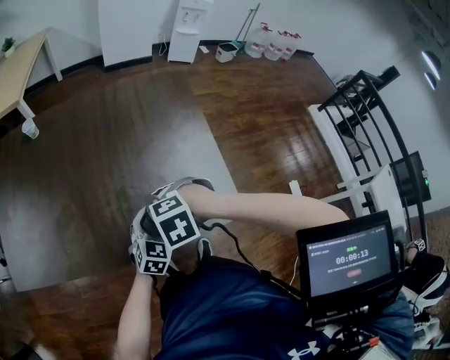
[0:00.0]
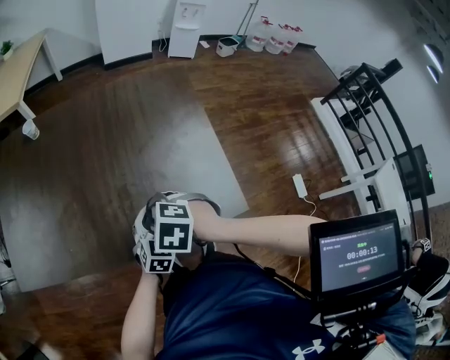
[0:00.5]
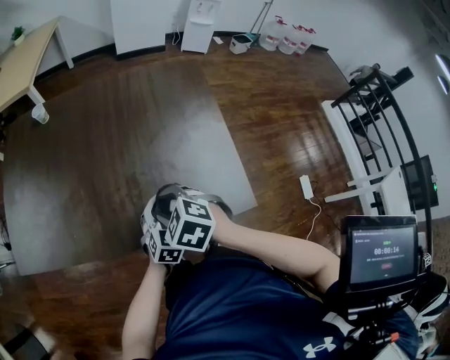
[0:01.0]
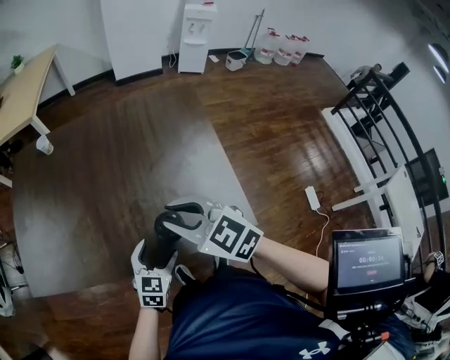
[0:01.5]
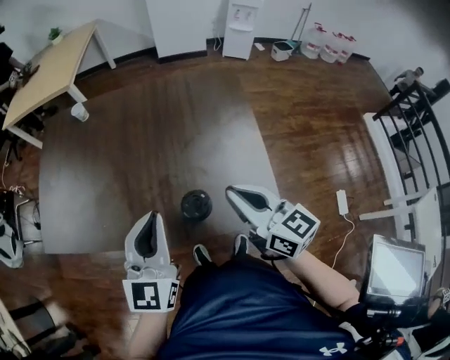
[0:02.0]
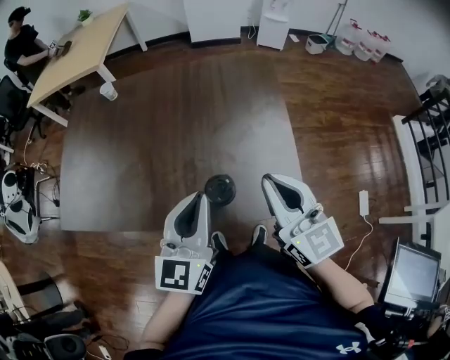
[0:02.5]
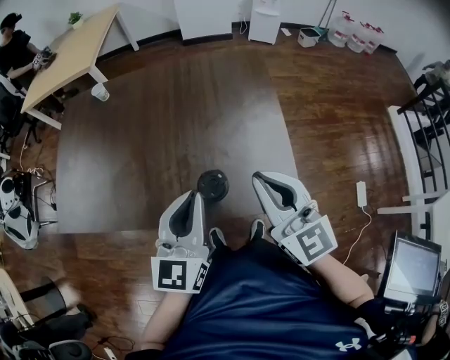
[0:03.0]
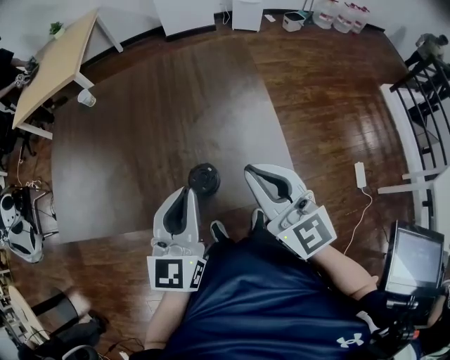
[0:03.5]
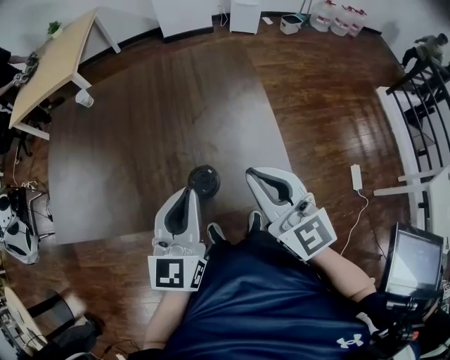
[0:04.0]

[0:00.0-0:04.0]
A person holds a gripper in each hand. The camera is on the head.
0:00.0 to 0:02.0: The left gripper moves upward, some 25 cm, points its fingers approximately 30 degrees further upward, and closes, while the right gripper shifts by about 20 cm, tips its fingers upward by some 70 degrees, and closes.
0:02.0 to 0:04.0: The right gripper swivels about 20 degrees.

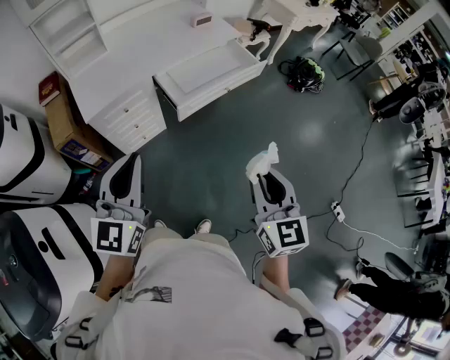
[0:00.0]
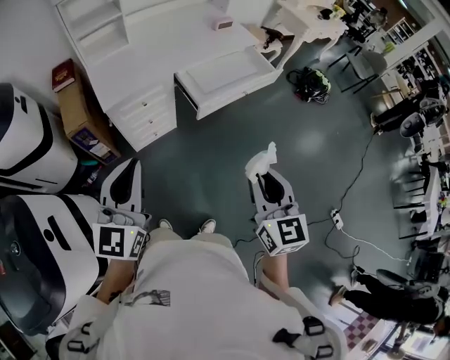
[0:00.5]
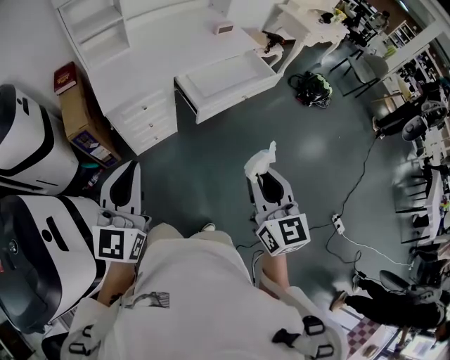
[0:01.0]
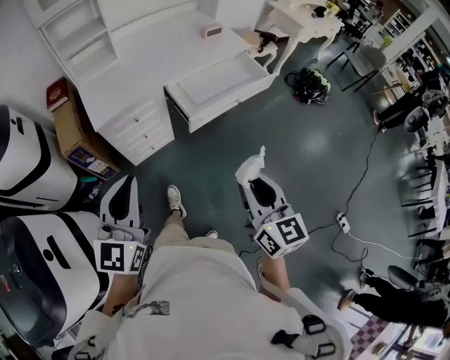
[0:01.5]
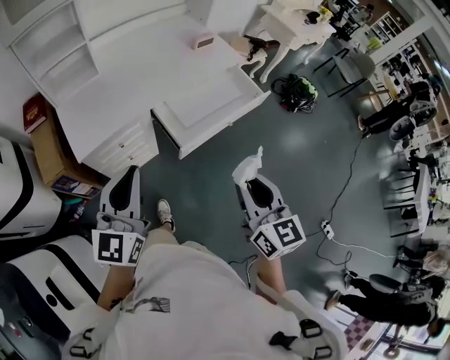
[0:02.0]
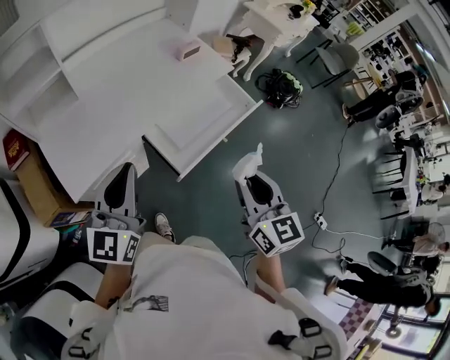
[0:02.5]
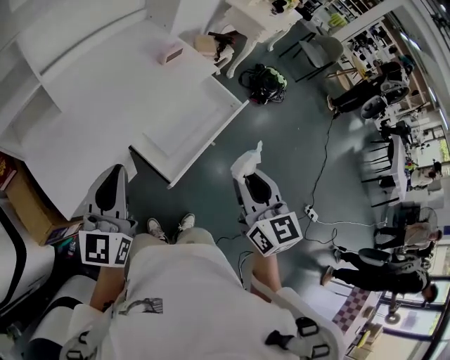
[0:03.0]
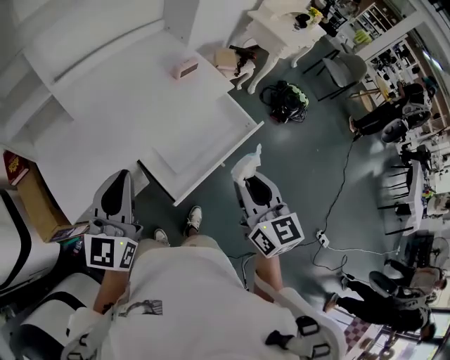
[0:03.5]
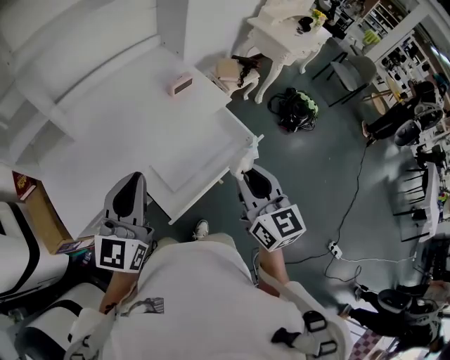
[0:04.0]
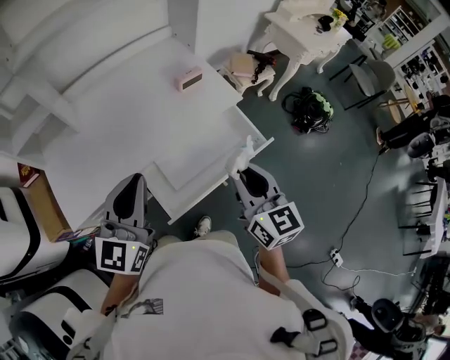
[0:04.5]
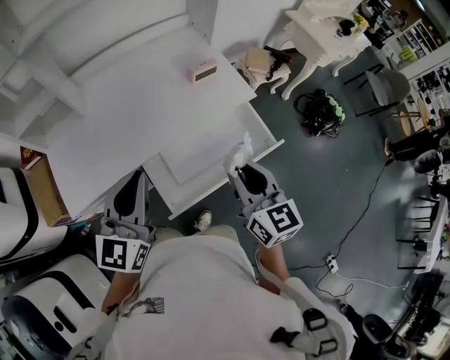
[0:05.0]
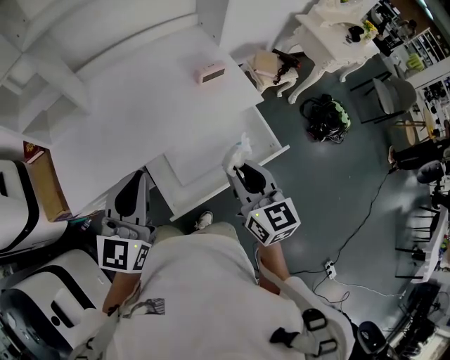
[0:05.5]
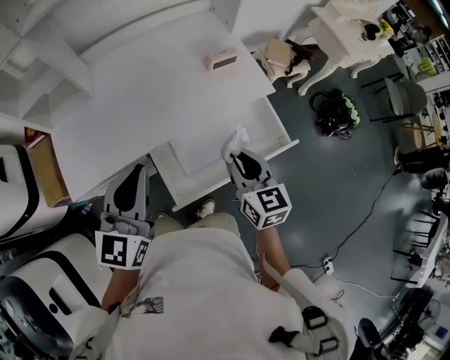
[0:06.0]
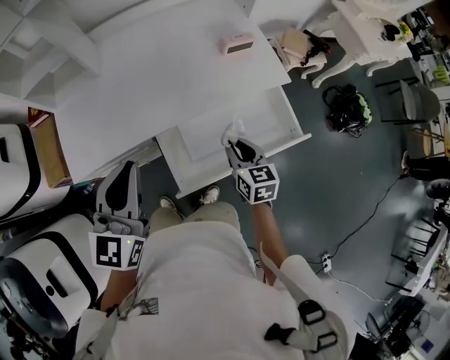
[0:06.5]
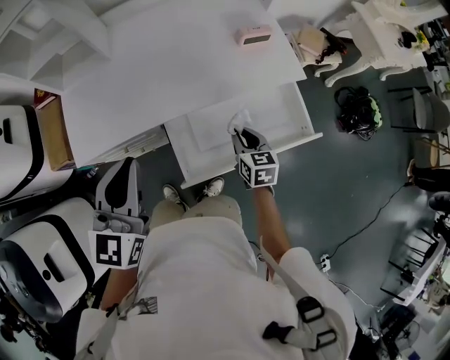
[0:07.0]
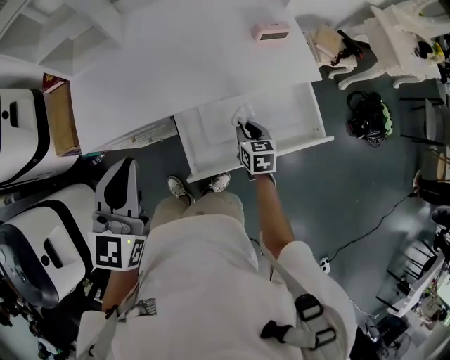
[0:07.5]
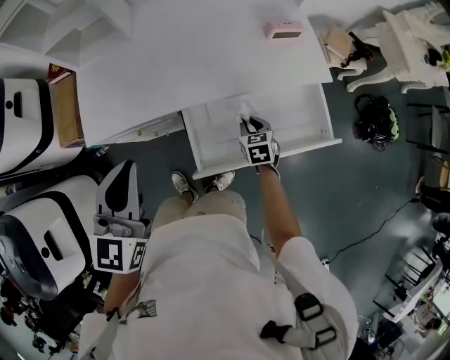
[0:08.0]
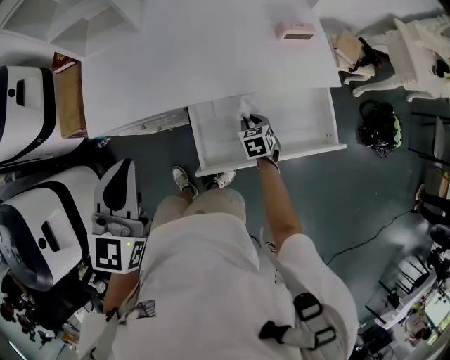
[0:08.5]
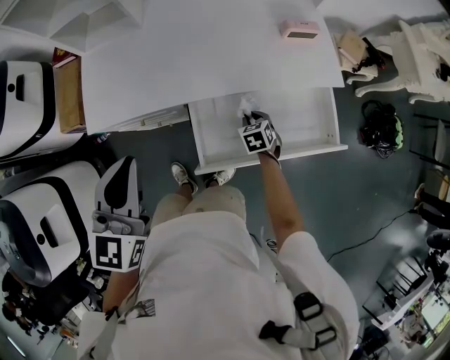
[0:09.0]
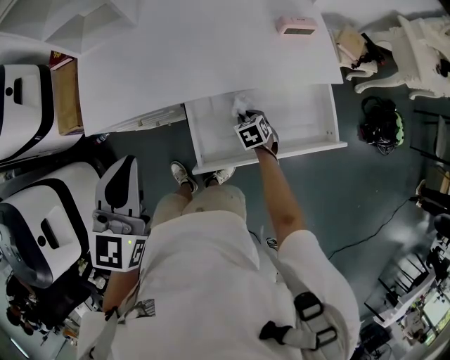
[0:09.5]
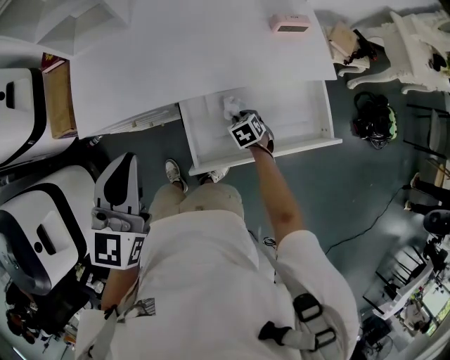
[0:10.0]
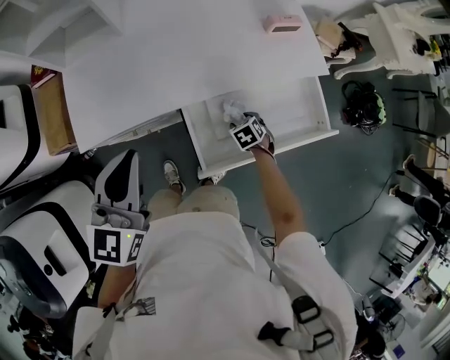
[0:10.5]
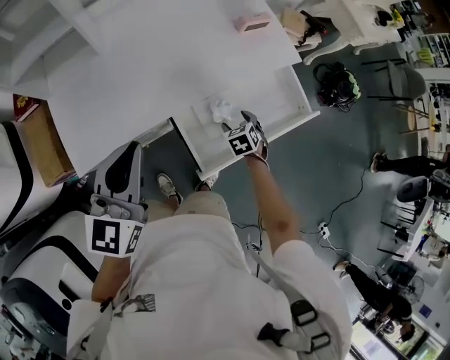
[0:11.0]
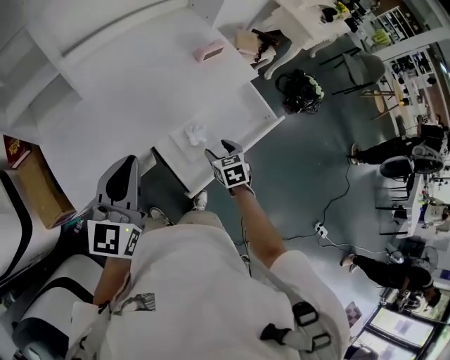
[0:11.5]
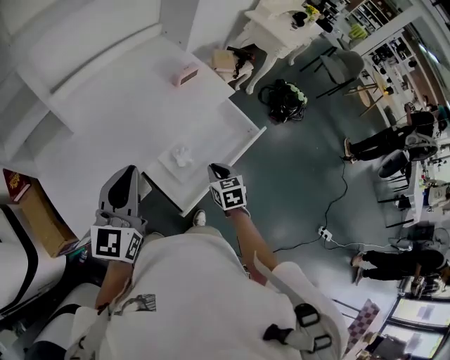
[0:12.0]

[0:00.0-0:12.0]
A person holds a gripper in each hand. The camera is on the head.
0:00.0 to 0:02.0: The left gripper travels forward by about 20 cm. Meanwhile the right gripper is displaced forward and to the left by some 20 cm.
0:02.0 to 0:04.0: Both grippers travel together forward, roughly 30 cm.
0:04.0 to 0:06.0: The left gripper moves downward, about 5 cm. The right gripper moves downward and forward, some 20 cm, and turns by about 20 degrees.
0:06.0 to 0:08.0: The left gripper shifts about 10 cm to the left, while the right gripper is displaced downward by roughly 25 cm, and turns by about 30 degrees.
0:08.0 to 0:10.0: The right gripper is displaced downward by approximately 10 cm, and rotates some 20 degrees.
0:10.0 to 0:12.0: The left gripper moves upward, about 5 cm, and rotates approximately 40 degrees. The right gripper heads upward, covering roughly 25 cm, rotates approximately 50 degrees, and opens and closes again.

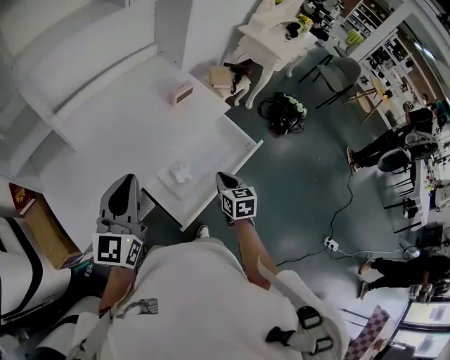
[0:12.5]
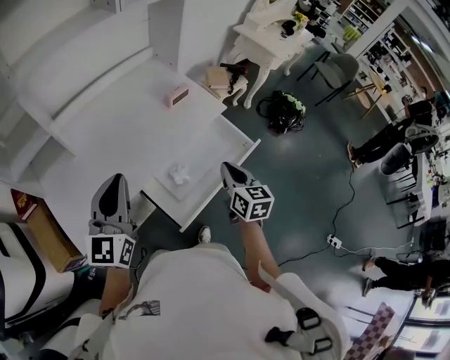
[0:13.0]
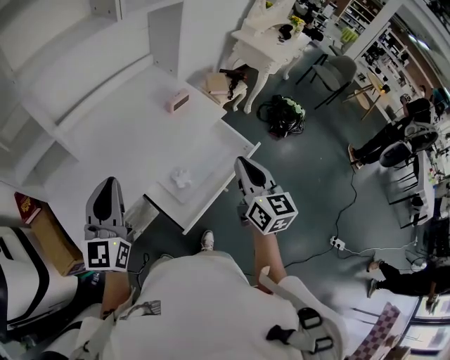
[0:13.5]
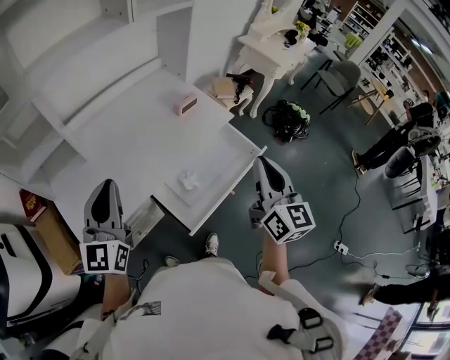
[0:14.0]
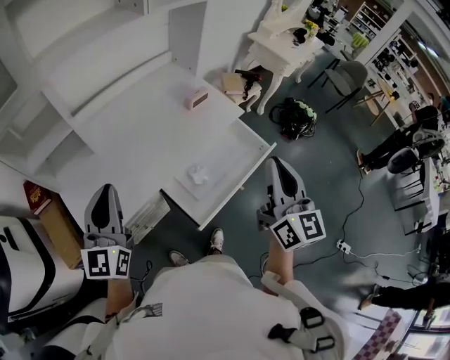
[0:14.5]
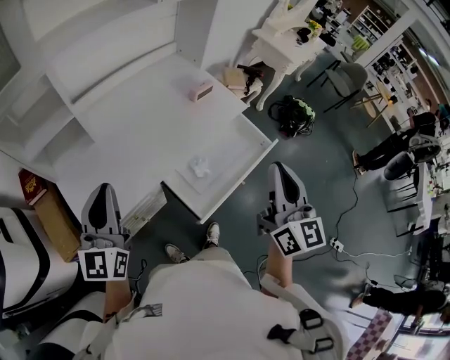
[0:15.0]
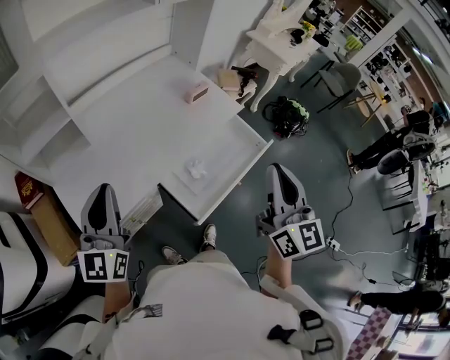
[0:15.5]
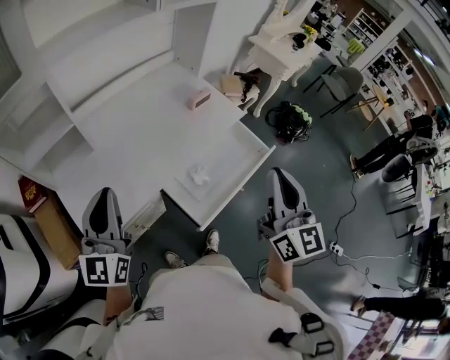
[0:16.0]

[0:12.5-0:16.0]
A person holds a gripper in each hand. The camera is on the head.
0:12.5 to 0:14.5: The right gripper moves upward, about 30 cm, and points its fingers some 40 degrees further upward, while the left gripper shifts approximately 10 cm to the left.
0:14.5 to 0:16.0: There are only small adjustments of the grippers.

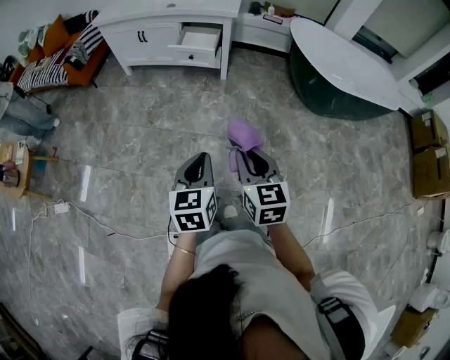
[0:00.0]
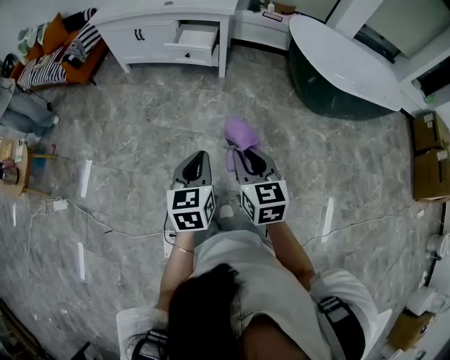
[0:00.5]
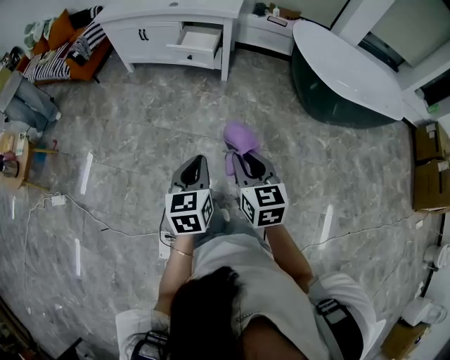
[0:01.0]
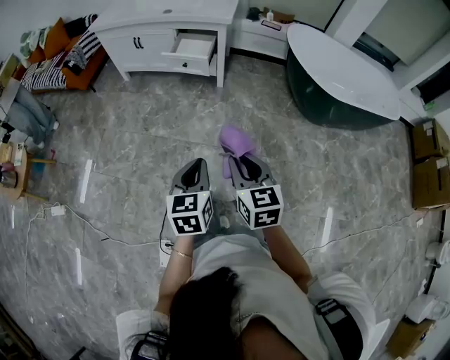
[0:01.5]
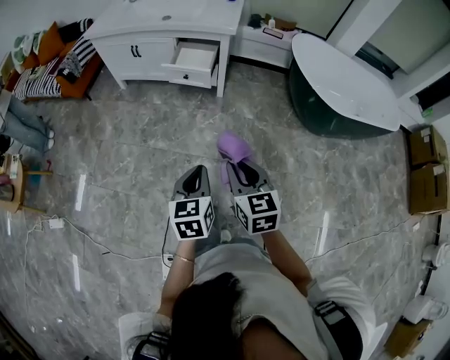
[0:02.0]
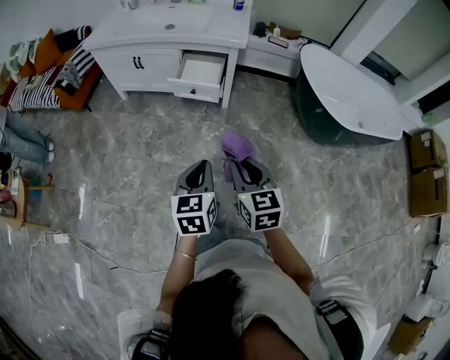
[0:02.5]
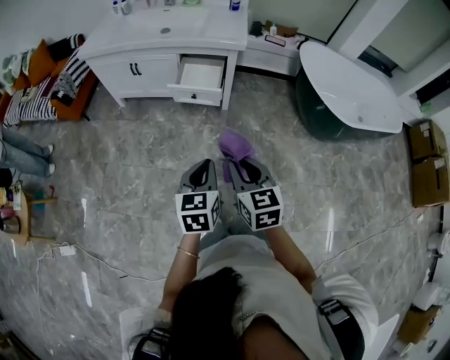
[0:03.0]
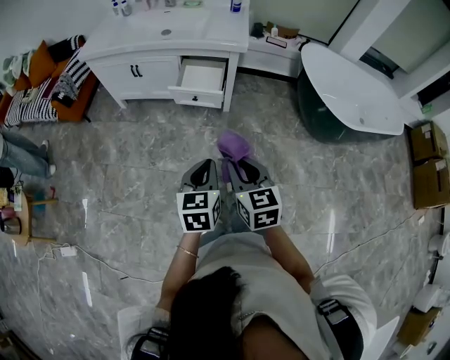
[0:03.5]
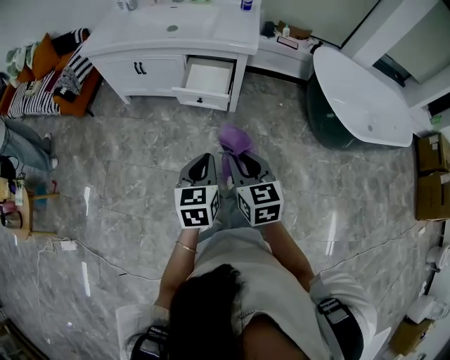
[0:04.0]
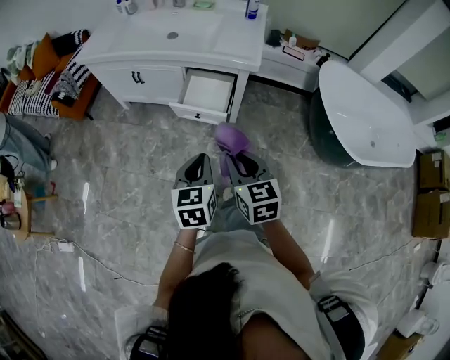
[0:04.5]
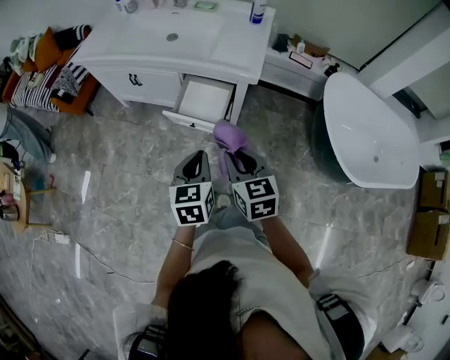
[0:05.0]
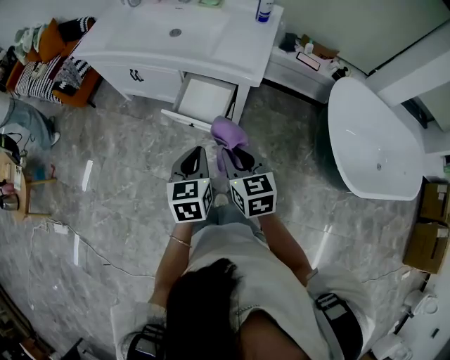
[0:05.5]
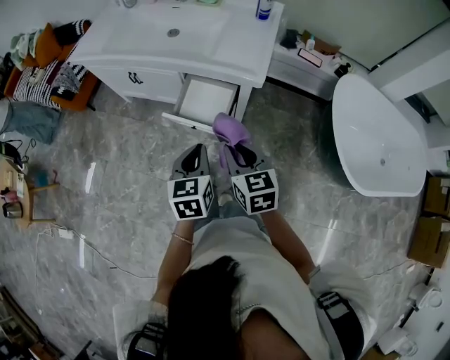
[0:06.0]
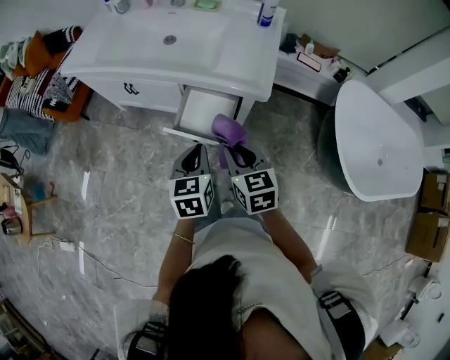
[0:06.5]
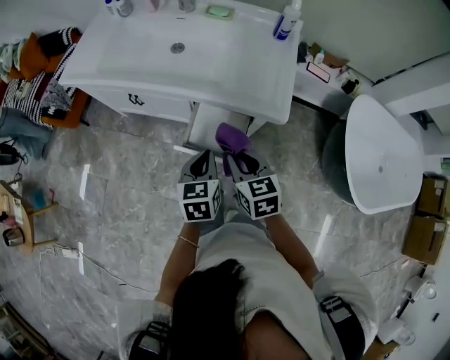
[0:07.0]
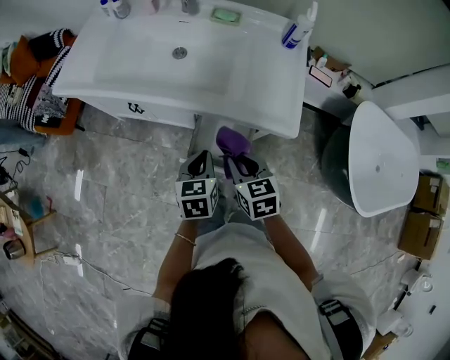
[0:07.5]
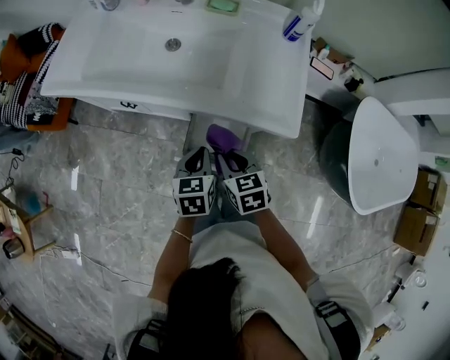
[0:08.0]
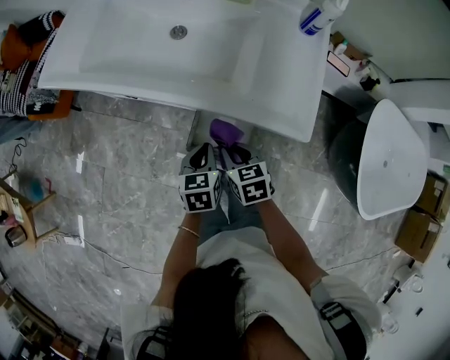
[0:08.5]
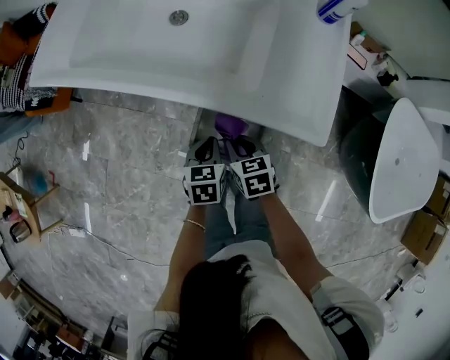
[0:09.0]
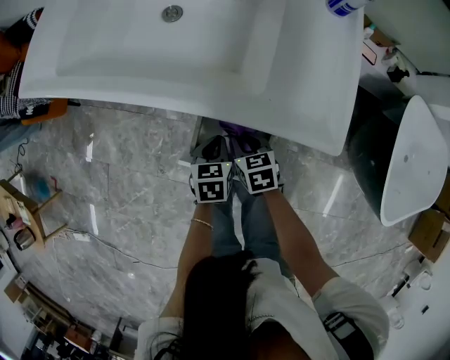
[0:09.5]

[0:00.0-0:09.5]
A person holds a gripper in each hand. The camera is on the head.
0:00.0 to 0:02.0: Both grippers move forward, some 10 cm.
0:02.0 to 0:04.0: Both grippers move forward, about 25 cm.
0:04.0 to 0:05.5: The two grippers go about 25 cm forward and to the right.
0:05.5 to 0:07.5: Both grippers travel together forward, about 25 cm.
0:07.5 to 0:09.5: The grippers both shift downward by roughly 25 cm.
